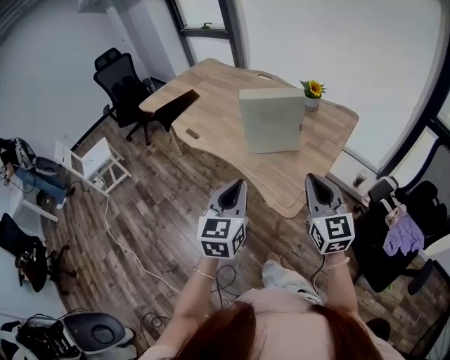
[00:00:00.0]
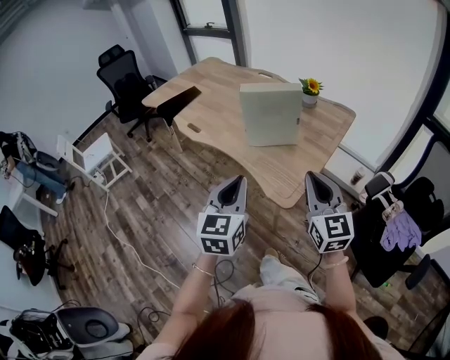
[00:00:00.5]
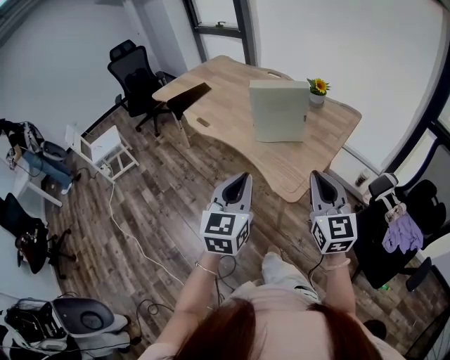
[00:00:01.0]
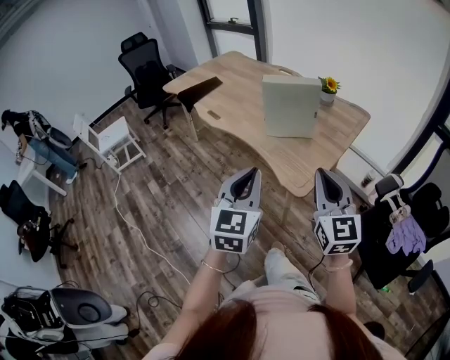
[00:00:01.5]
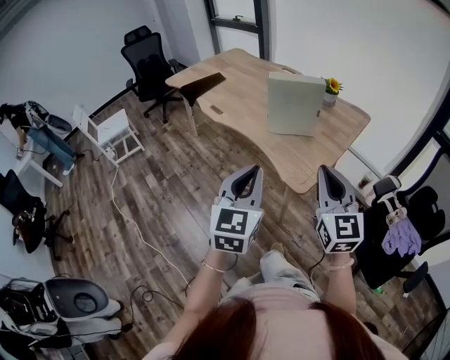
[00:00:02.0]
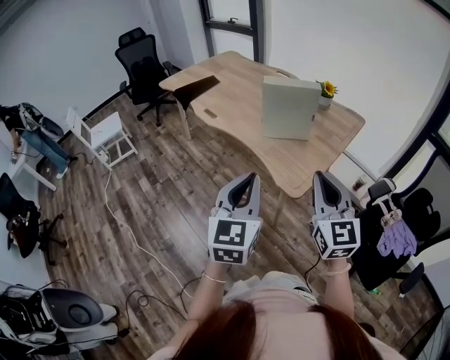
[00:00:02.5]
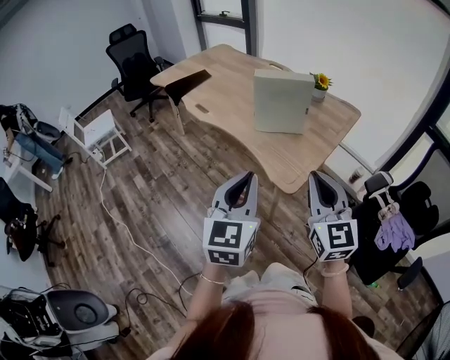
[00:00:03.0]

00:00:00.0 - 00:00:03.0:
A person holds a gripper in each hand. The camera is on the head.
00:00:00.0 - 00:00:01.5: The two grippers go some 10 cm backward.
00:00:01.5 - 00:00:03.0: The grippers move only a little.

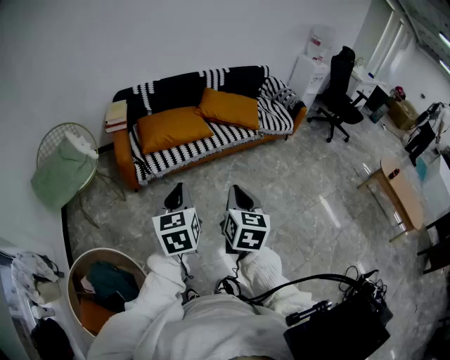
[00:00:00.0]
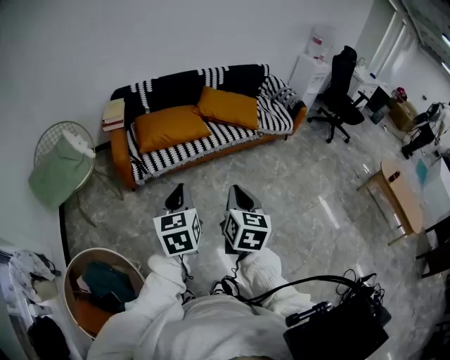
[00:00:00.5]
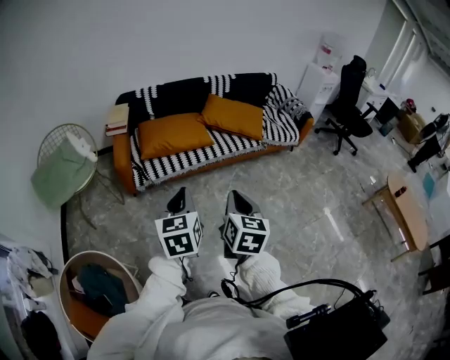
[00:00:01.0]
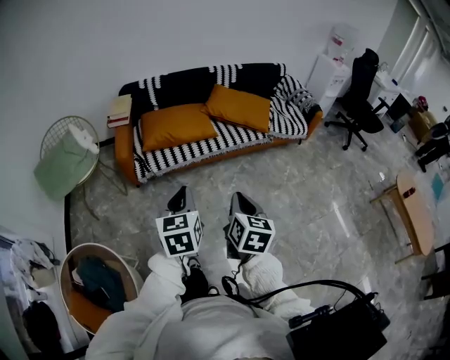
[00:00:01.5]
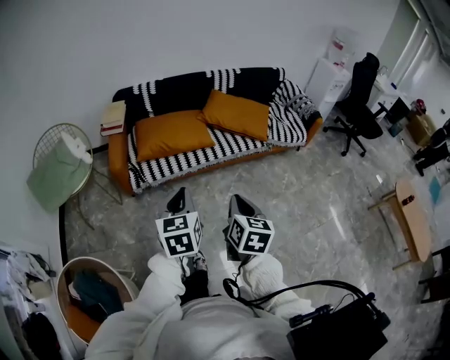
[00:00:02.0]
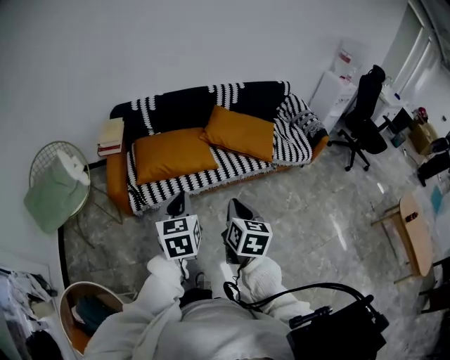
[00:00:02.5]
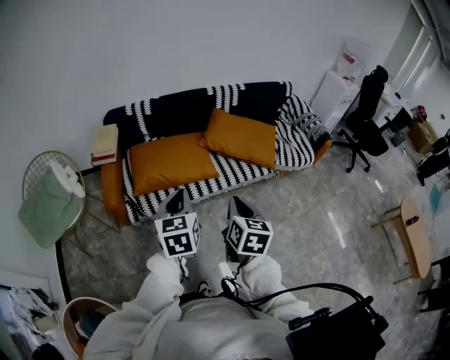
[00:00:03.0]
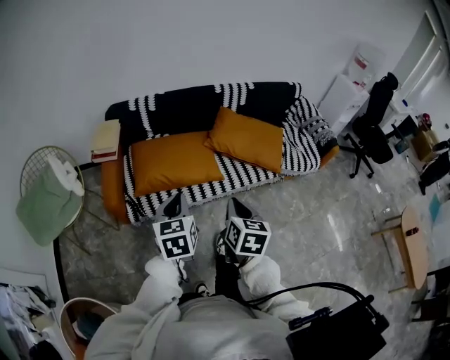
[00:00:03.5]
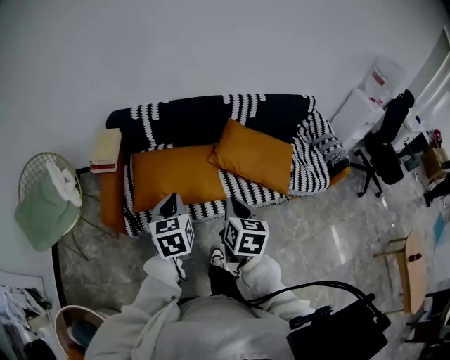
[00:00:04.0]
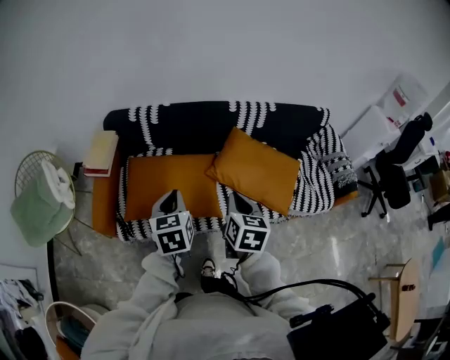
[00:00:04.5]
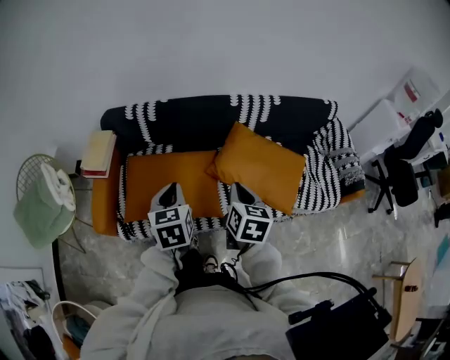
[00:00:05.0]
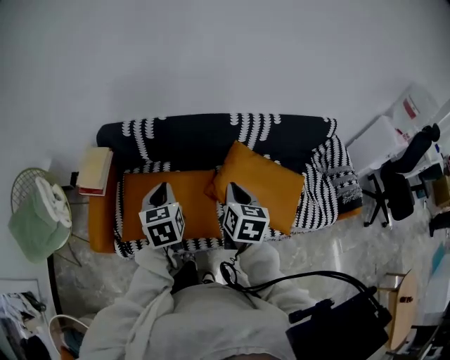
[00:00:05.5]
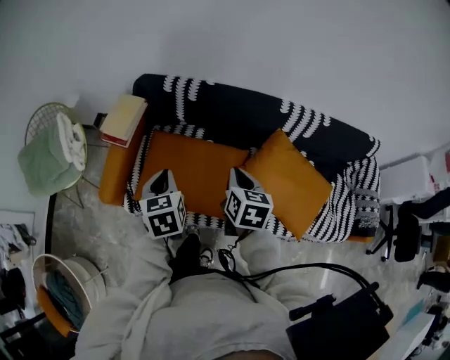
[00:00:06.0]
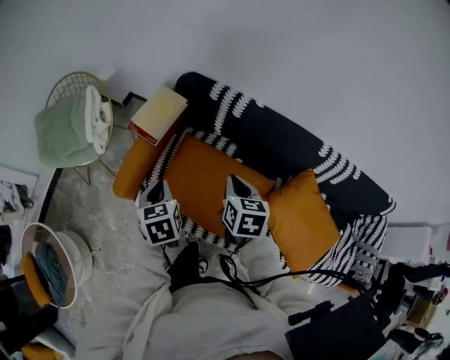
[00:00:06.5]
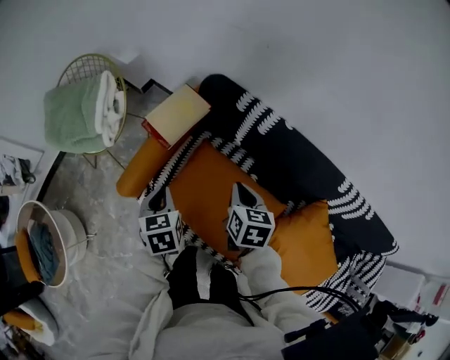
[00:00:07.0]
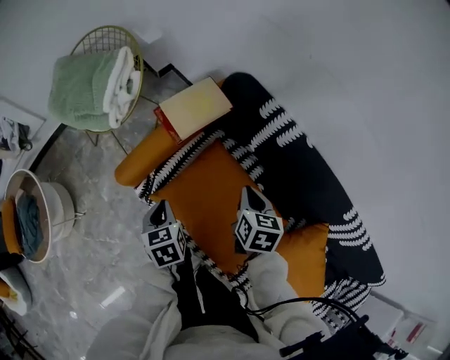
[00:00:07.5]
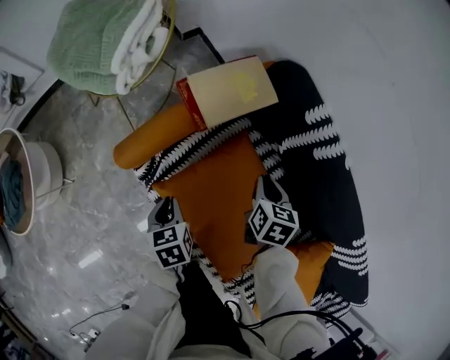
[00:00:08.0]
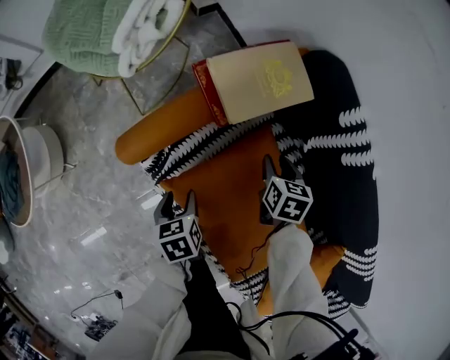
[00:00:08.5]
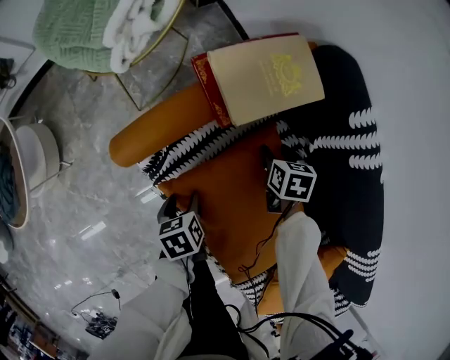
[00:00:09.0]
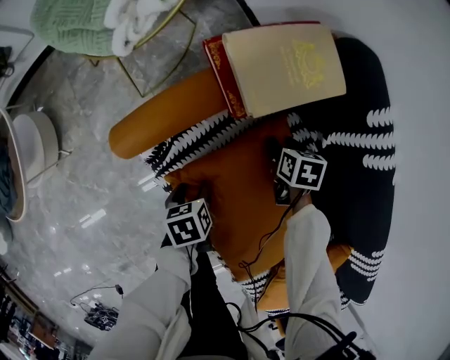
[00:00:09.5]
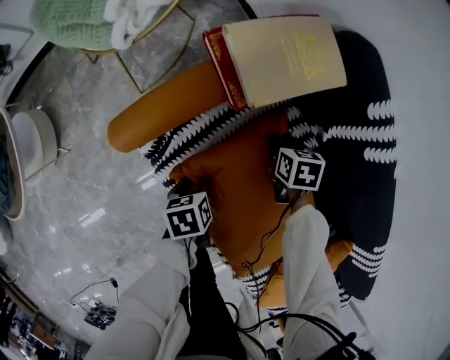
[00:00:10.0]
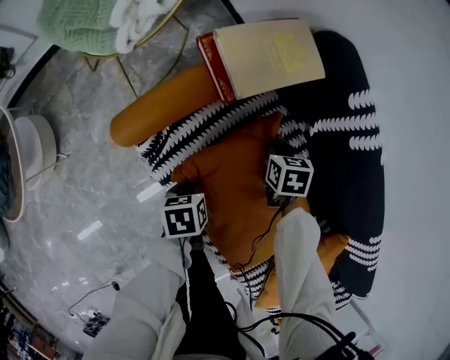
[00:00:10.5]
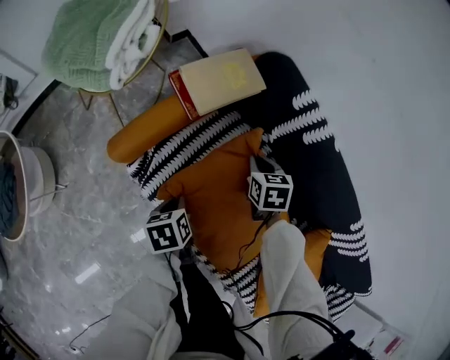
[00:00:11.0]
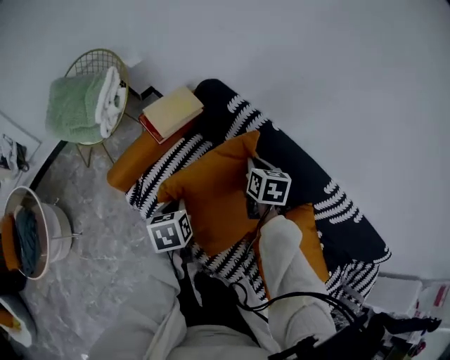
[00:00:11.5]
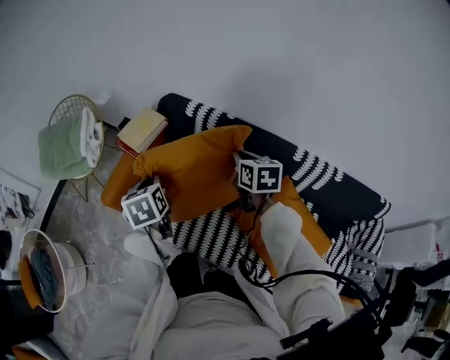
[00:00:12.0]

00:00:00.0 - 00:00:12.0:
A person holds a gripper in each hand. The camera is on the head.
00:00:00.0 - 00:00:02.0: Both grippers travel together forward and to the right, approximately 15 cm.
00:00:02.0 - 00:00:04.0: The grippers both shift forward by approximately 40 cm.
00:00:04.0 - 00:00:06.0: Both grippers travel together forward, approximately 25 cm. The right gripper turns by roughly 20 degrees; the left gripper swivels some 20 degrees.
00:00:06.0 - 00:00:08.0: The left gripper travels downward by about 30 cm, and rotates approximately 50 degrees; the right gripper moves approximately 40 cm, and swivels approximately 40 degrees.
00:00:08.0 - 00:00:10.0: Both grippers travel together downward, some 15 cm. The right gripper turns by some 20 degrees, and opens and closes again; the left gripper rotates approximately 20 degrees, and opens its fingers.
00:00:10.0 - 00:00:12.0: The right gripper goes approximately 50 cm upward, to the right and backward, and angles its fingers upward, by about 30 degrees. The left gripper is displaced upward by some 40 cm, rotates some 50 degrees, and closes up.

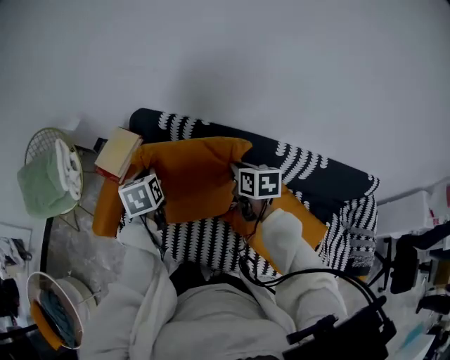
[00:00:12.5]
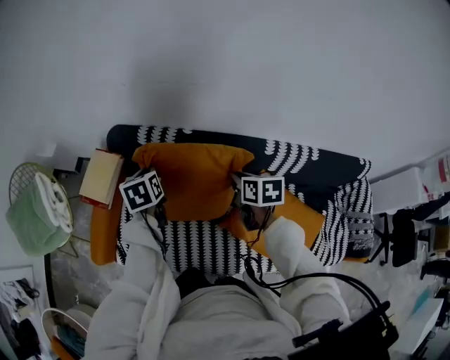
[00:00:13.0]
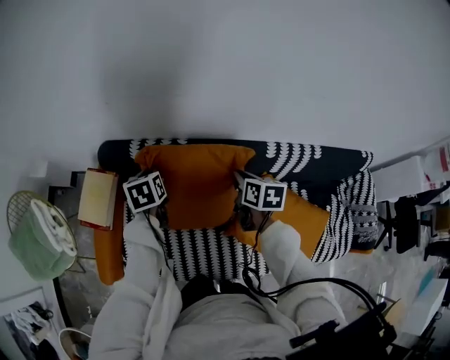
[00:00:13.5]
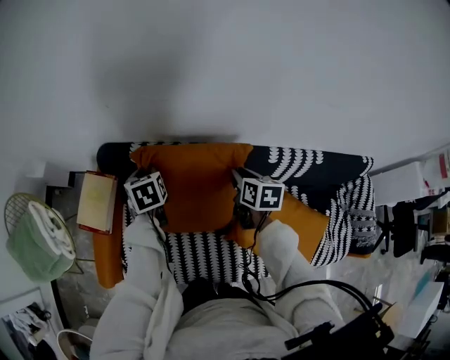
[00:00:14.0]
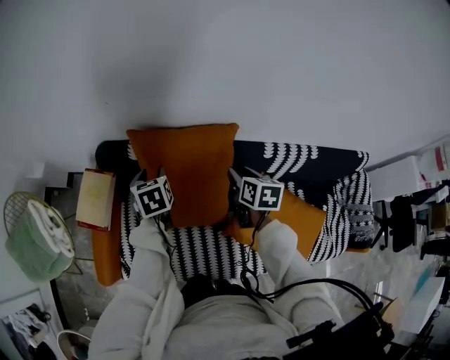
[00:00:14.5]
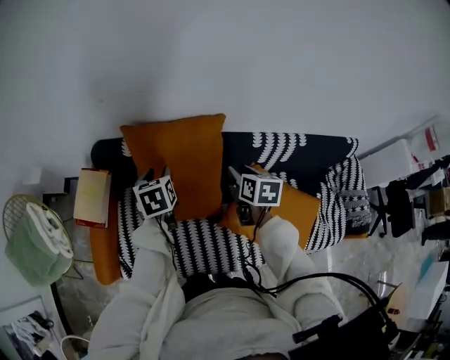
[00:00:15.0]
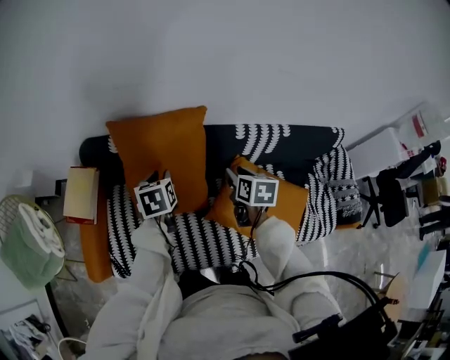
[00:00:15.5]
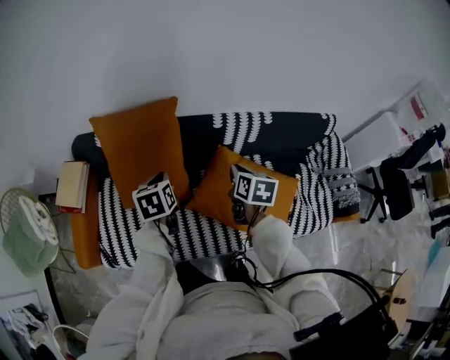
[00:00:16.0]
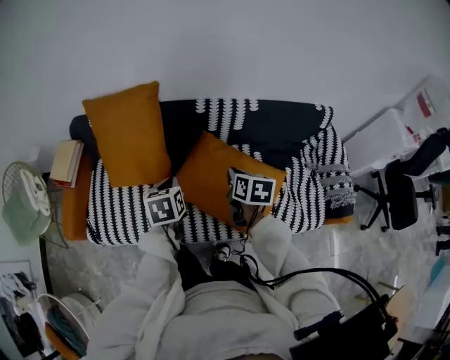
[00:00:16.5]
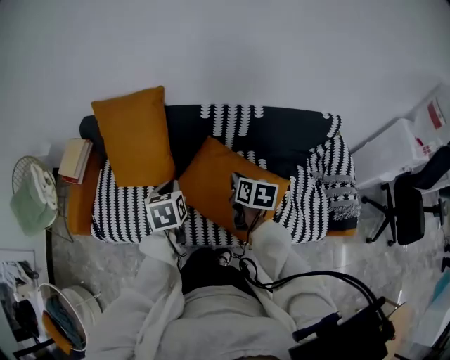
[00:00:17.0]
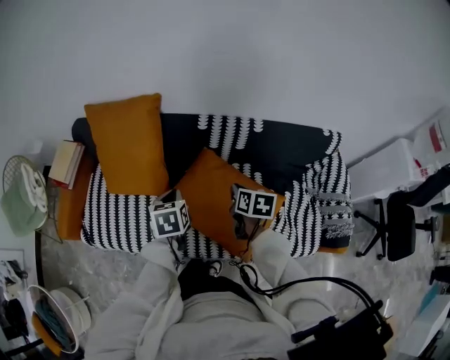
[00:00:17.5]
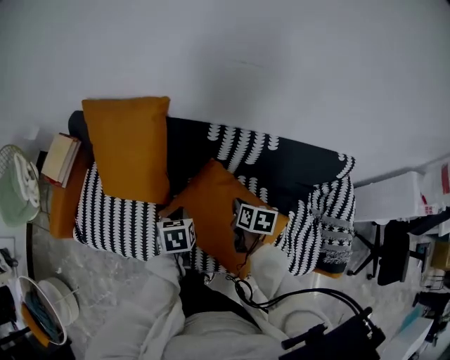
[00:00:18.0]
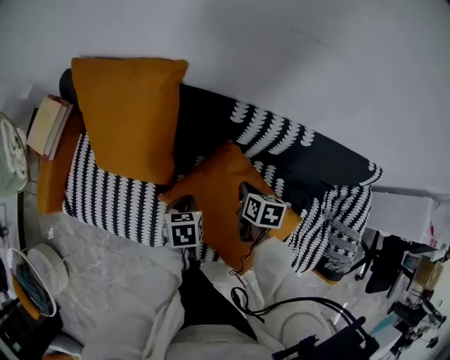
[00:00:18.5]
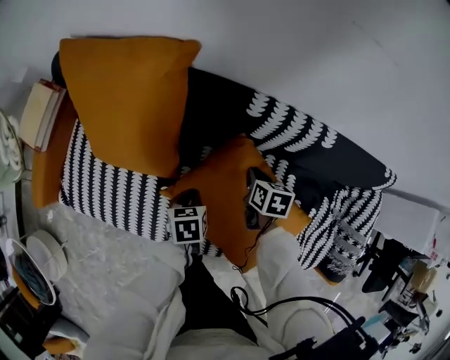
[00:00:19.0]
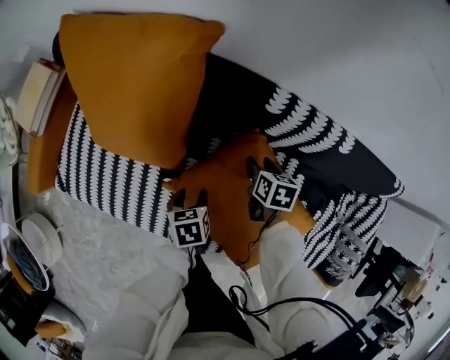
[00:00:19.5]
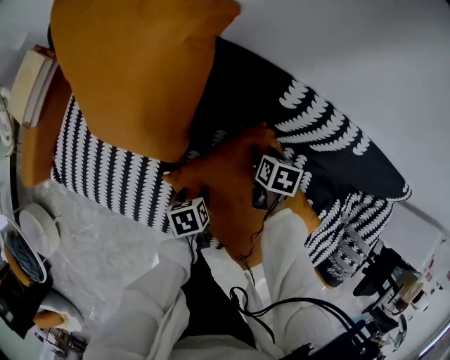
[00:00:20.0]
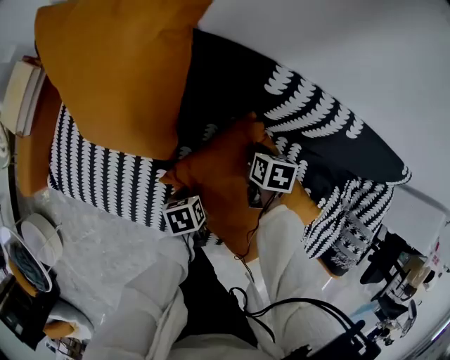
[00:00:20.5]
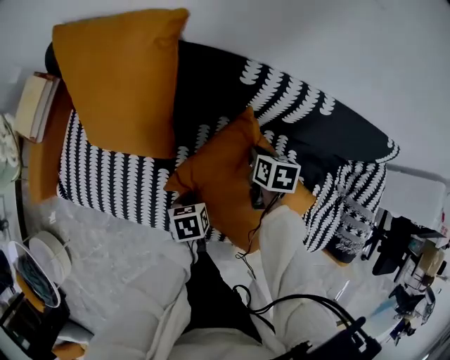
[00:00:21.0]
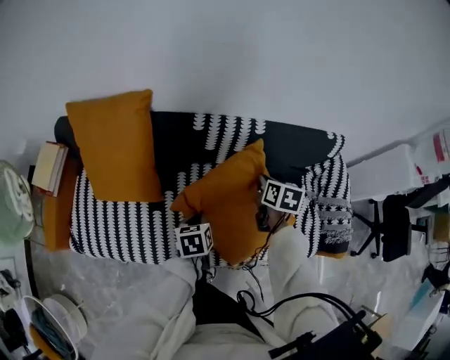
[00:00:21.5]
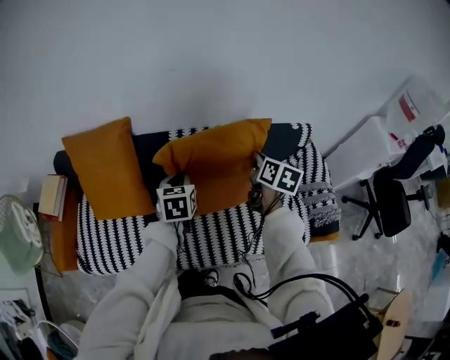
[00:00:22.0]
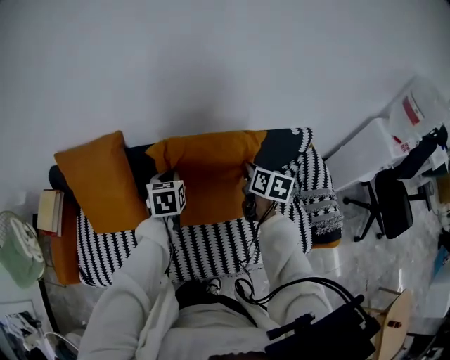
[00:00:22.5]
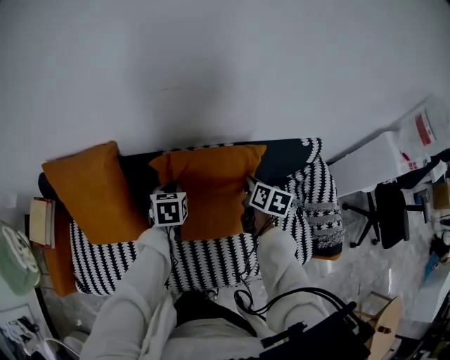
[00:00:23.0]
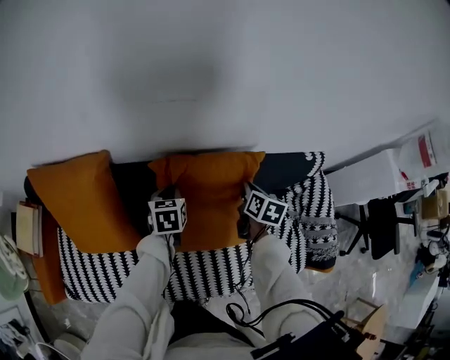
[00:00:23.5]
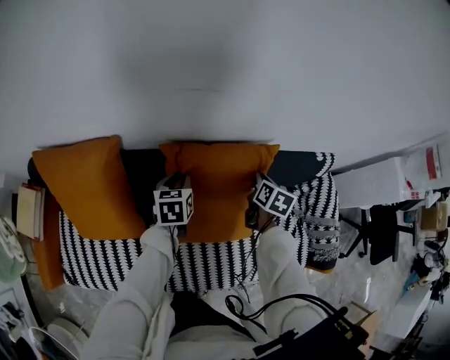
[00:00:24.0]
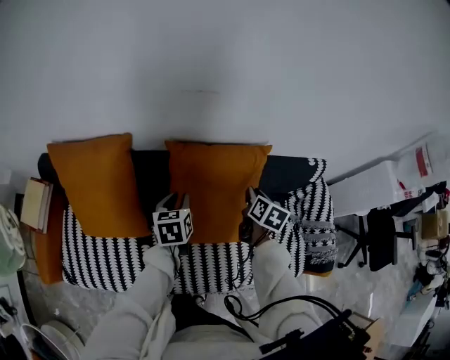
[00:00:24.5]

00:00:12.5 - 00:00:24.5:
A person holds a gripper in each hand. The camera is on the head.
00:00:12.5 - 00:00:14.5: The right gripper shifts roughly 10 cm forward and to the right, changes its angle by approximately 20 degrees, and opens its fingers. Meanwhile the left gripper travels forward and to the right by about 20 cm, and opens.
00:00:14.5 - 00:00:16.5: Both grippers travel together to the right and backward, roughly 40 cm. The right gripper closes its fingers. The left gripper closes.
00:00:16.5 - 00:00:18.5: The two grippers go some 25 cm downward and forward.
00:00:18.5 - 00:00:20.5: The right gripper is displaced downward and forward by roughly 15 cm, and opens and closes again; the left gripper heads downward, covering some 15 cm, swivels some 30 degrees, and opens.
00:00:20.5 - 00:00:22.5: The right gripper heads upward and to the right, covering approximately 40 cm, and angles its fingers upward, by some 30 degrees. The left gripper heads upward and forward, covering approximately 40 cm, rotates around the line of its fingers by some 50 degrees, clockwise from behind, and closes.
00:00:22.5 - 00:00:24.5: The left gripper heads downward, covering some 5 cm. Meanwhile the right gripper is displaced downward and forward by some 10 cm.
